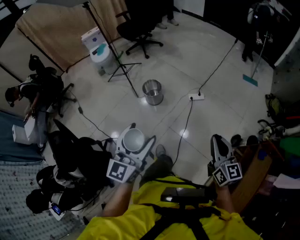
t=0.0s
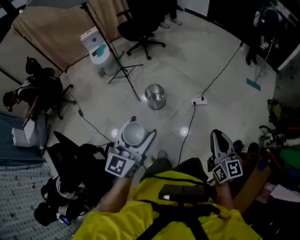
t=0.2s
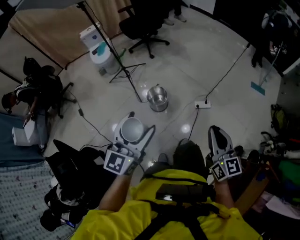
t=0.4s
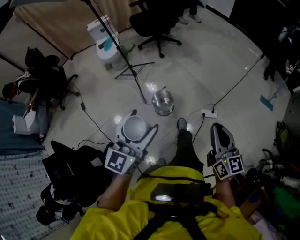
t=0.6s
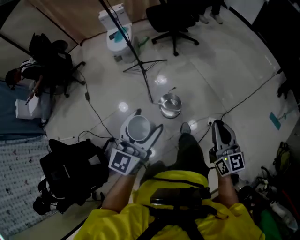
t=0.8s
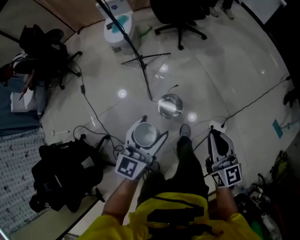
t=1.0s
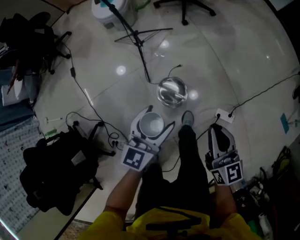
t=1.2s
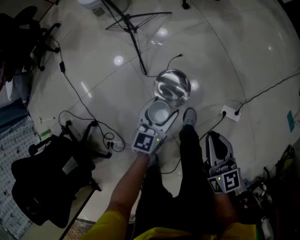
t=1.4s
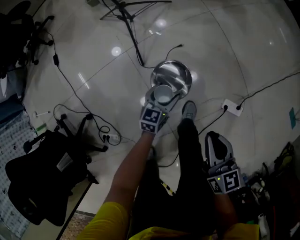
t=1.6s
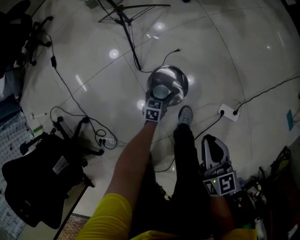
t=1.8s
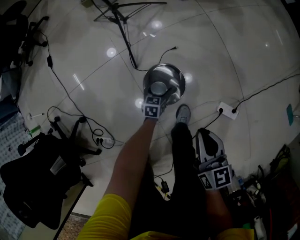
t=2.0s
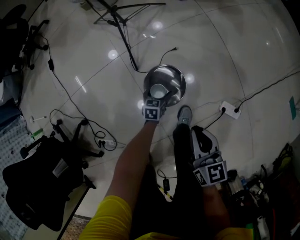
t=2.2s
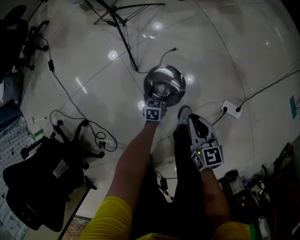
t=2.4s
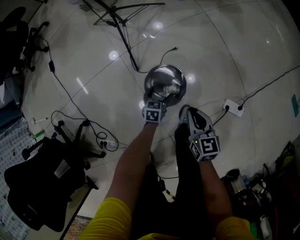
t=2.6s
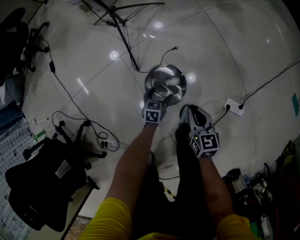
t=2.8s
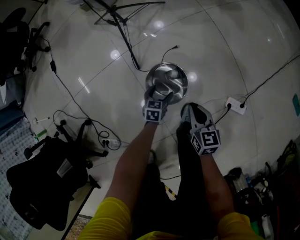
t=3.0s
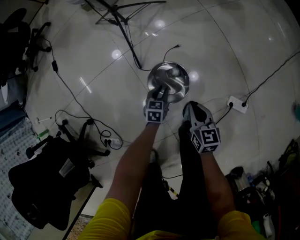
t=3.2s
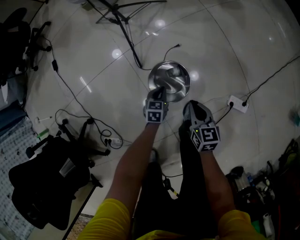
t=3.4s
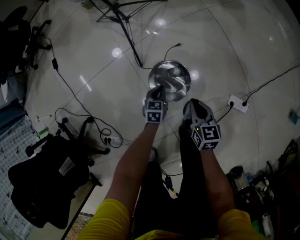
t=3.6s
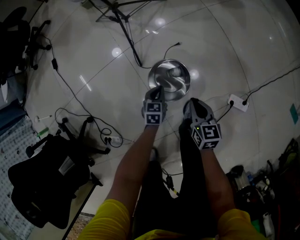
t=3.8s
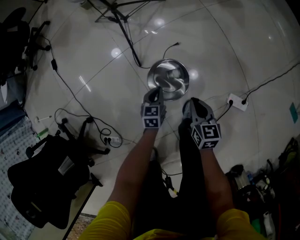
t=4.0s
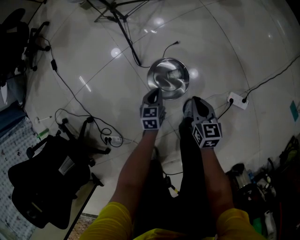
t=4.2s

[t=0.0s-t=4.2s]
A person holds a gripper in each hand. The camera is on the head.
t=0.0s to t=1.4s: The two grippers travel together, forward, about 70 cm. The two grippers go roughly 50 cm downward. The right gripper changes its angle by approximately 30 degrees. Meanwhile the left gripper rotates some 30 degrees.
t=1.4s to t=2.8s: The two grippers go approximately 25 cm downward. The left gripper swivels approximately 30 degrees.
t=2.8s to t=4.2s: The left gripper goes roughly 10 cm upward, and closes up.

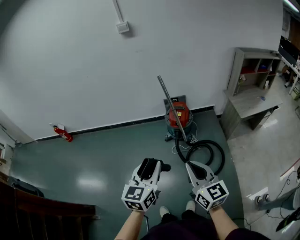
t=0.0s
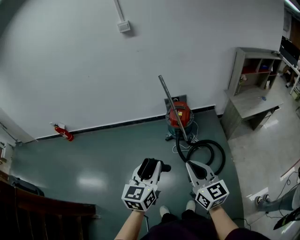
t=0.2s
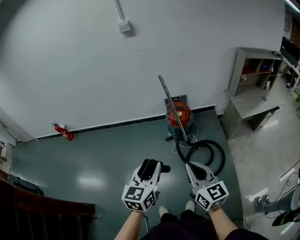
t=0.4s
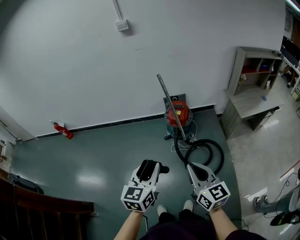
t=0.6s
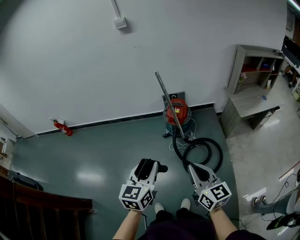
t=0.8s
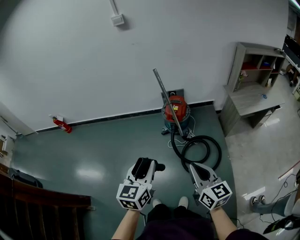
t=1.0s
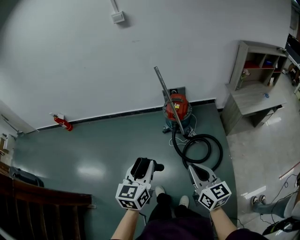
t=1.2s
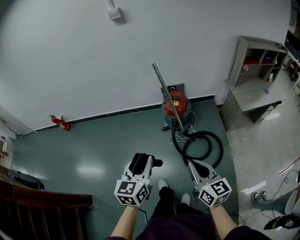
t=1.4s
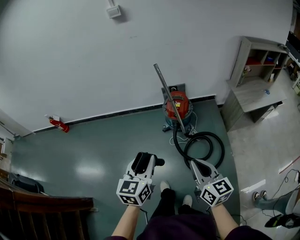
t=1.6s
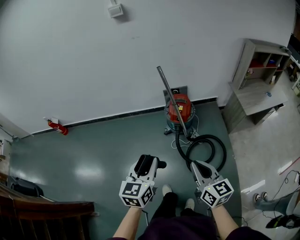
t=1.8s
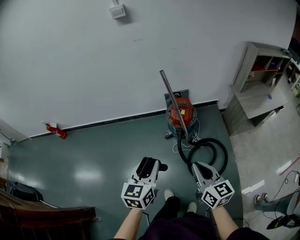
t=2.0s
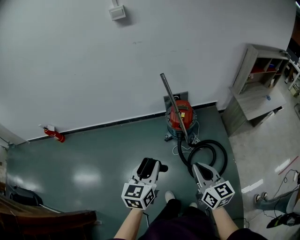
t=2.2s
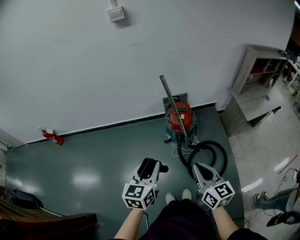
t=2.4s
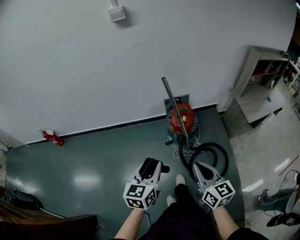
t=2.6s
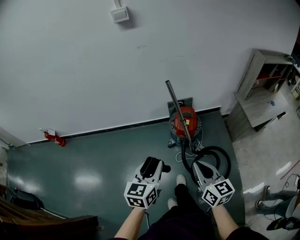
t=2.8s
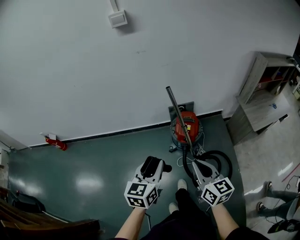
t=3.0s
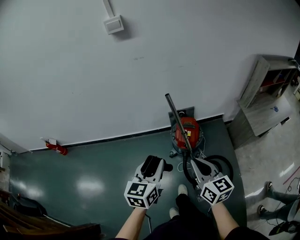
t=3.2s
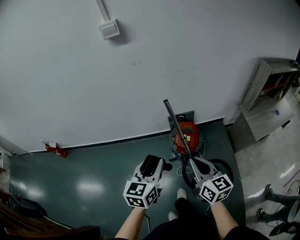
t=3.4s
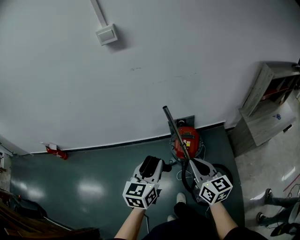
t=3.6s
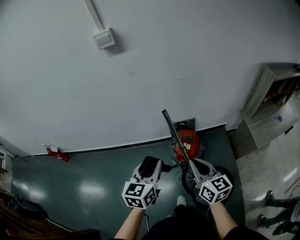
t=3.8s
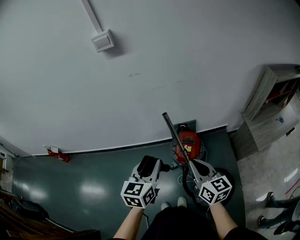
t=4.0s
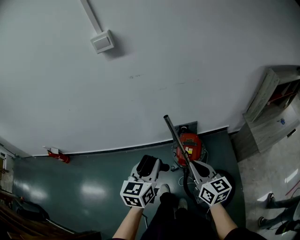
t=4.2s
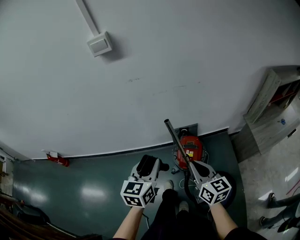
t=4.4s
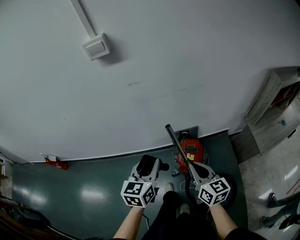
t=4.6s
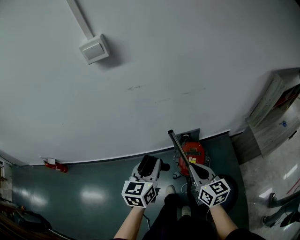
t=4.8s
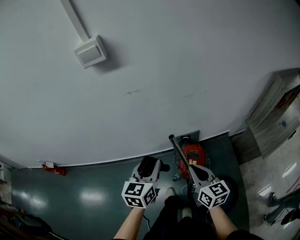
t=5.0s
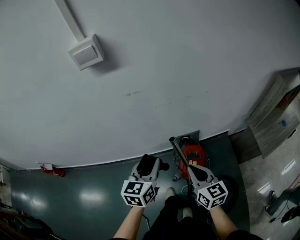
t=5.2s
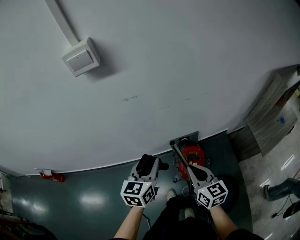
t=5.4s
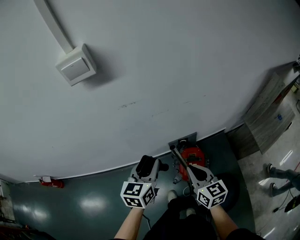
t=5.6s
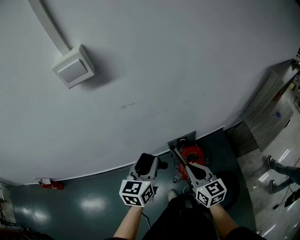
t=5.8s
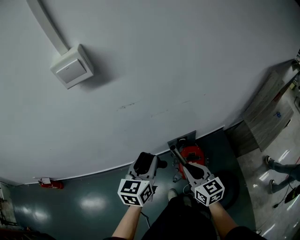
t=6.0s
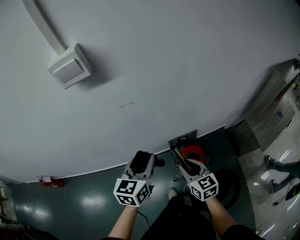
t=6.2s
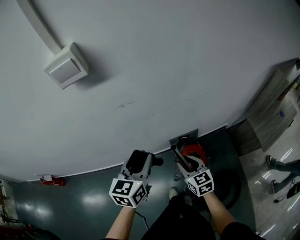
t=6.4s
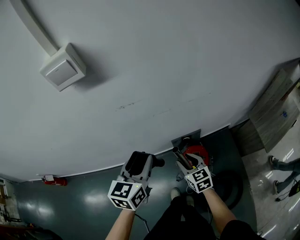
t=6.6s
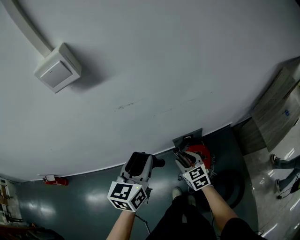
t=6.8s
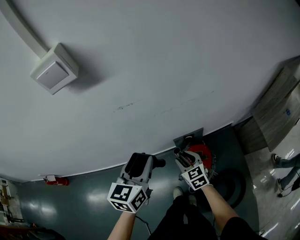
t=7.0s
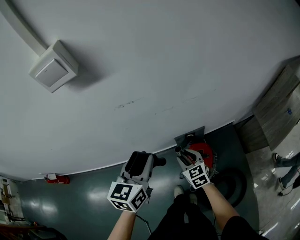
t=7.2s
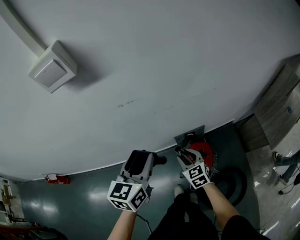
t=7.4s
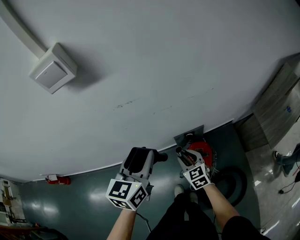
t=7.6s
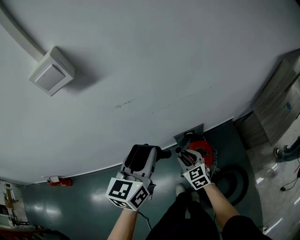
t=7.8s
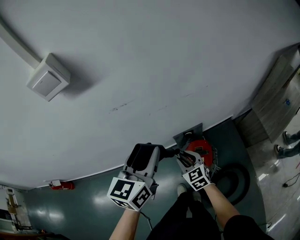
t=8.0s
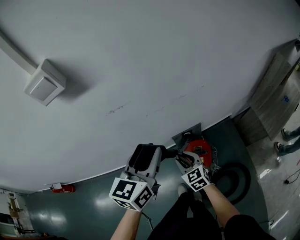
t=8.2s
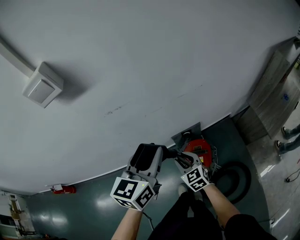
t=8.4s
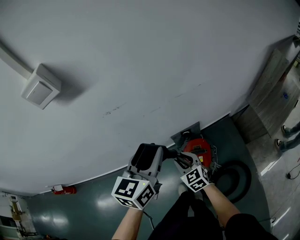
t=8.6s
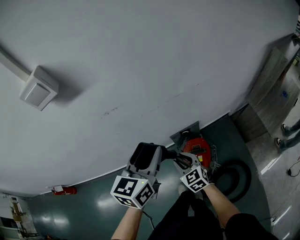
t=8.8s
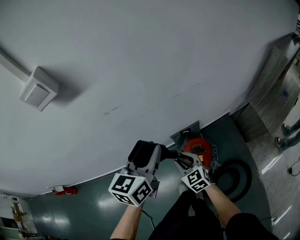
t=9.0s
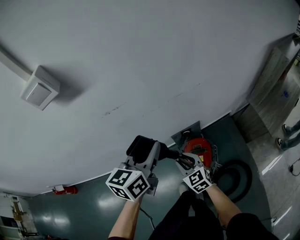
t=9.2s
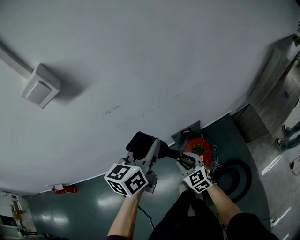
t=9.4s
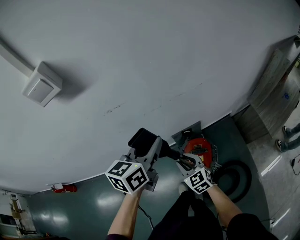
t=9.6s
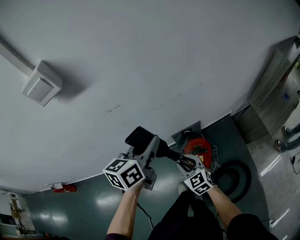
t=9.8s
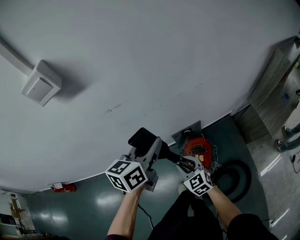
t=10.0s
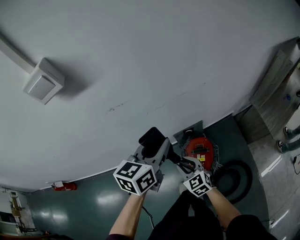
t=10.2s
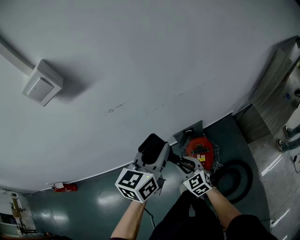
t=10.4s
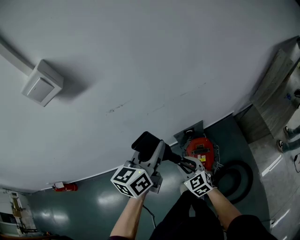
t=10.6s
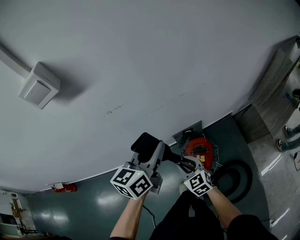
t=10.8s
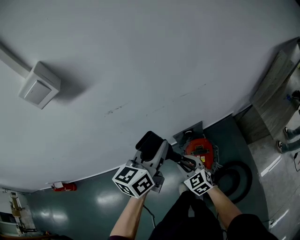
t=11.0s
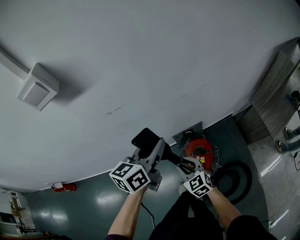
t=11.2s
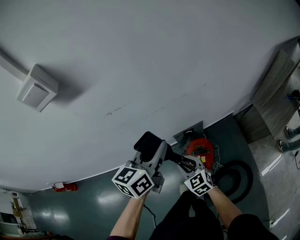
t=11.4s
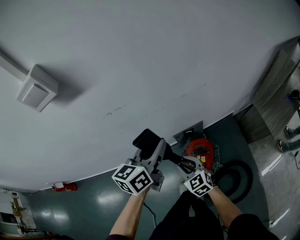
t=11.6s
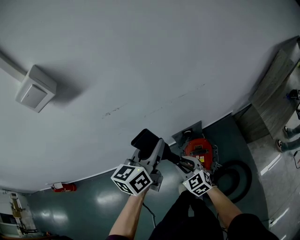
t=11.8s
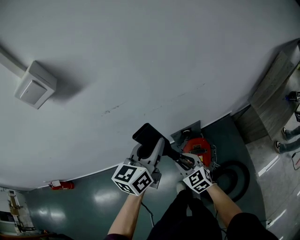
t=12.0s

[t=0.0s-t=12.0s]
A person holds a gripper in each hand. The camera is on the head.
t=0.0s to t=1.6s: The left gripper heads forward, covering about 10 cm, while the right gripper shifts some 10 cm downward, forward and to the right.
t=1.6s to t=3.0s: The two grippers go roughly 25 cm forward.
t=3.0s to t=4.4s: Both grippers travel together forward, some 20 cm.
t=4.4s to t=6.0s: The right gripper heads forward and to the left, covering roughly 20 cm; the left gripper shifts about 20 cm forward.
t=6.0s to t=7.6s: The right gripper shifts roughly 15 cm downward and forward, turns by roughly 20 degrees, and opens its fingers.
t=7.6s to t=9.0s: The left gripper moves to the right, some 5 cm.
t=9.0s to t=12.0s: The grippers make only small movements.

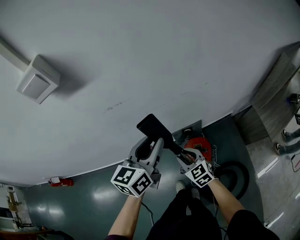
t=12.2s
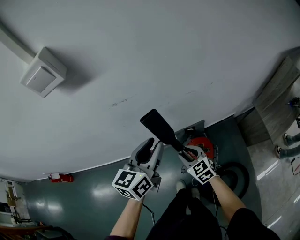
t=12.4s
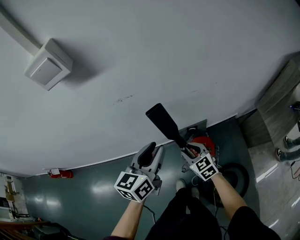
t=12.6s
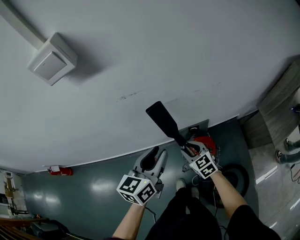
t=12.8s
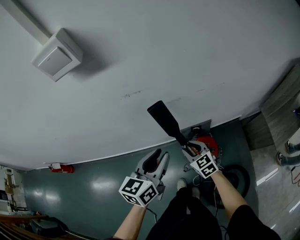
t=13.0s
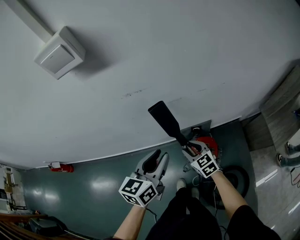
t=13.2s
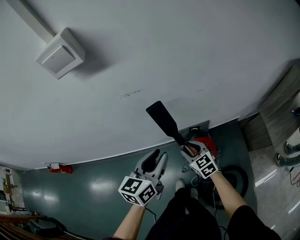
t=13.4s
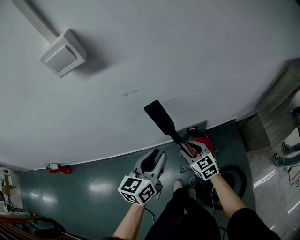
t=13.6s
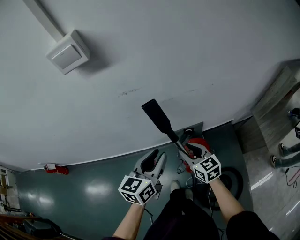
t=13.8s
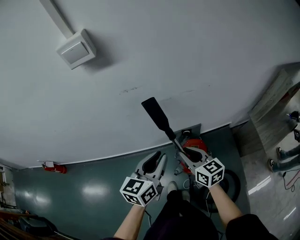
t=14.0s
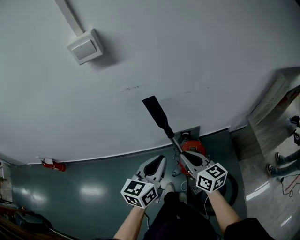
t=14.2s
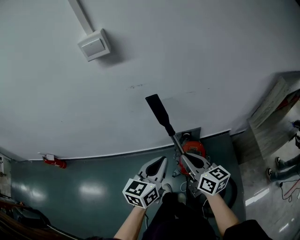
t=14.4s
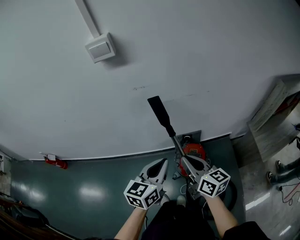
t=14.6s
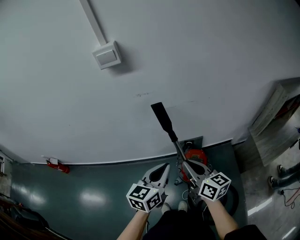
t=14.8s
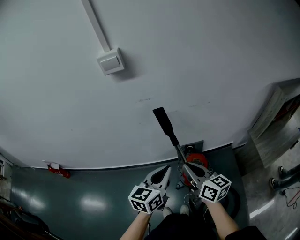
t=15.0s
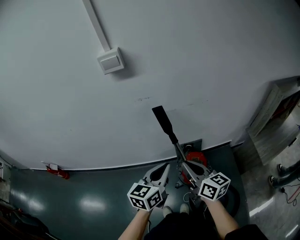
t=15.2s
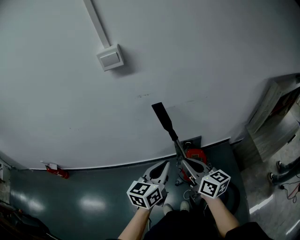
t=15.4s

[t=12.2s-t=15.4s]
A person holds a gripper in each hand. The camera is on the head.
t=12.2s to t=13.8s: The left gripper shifts roughly 10 cm backward. The right gripper shifts approximately 5 cm upward.
t=13.8s to t=15.4s: The right gripper moves upward and backward, about 20 cm, changes its angle by some 30 degrees, and closes its fingers; the left gripper heads backward, covering roughly 10 cm, and closes its fingers.

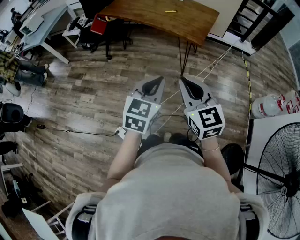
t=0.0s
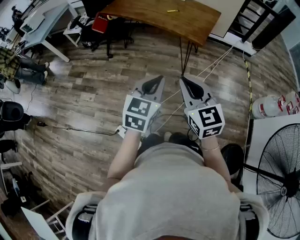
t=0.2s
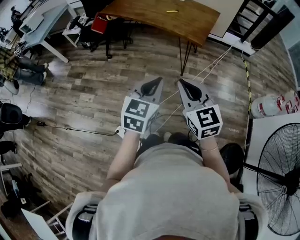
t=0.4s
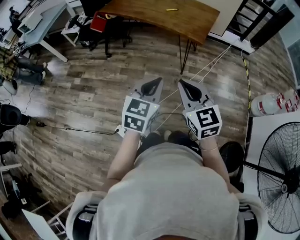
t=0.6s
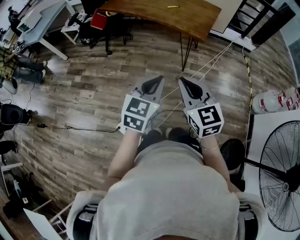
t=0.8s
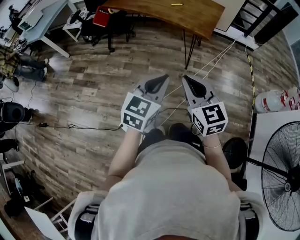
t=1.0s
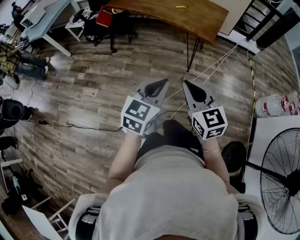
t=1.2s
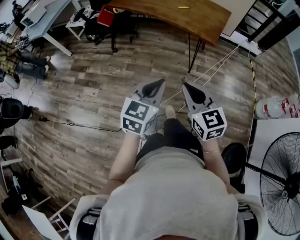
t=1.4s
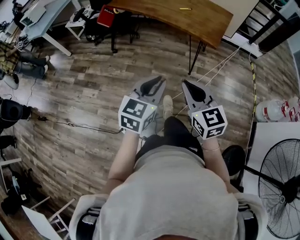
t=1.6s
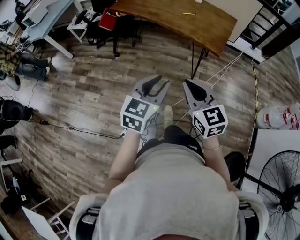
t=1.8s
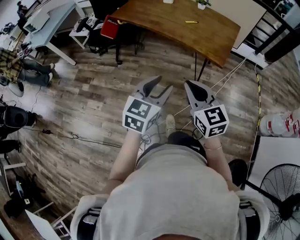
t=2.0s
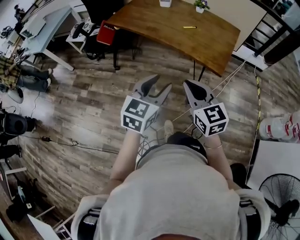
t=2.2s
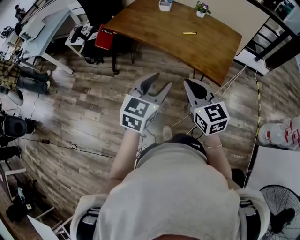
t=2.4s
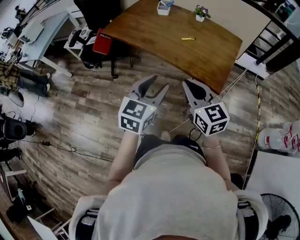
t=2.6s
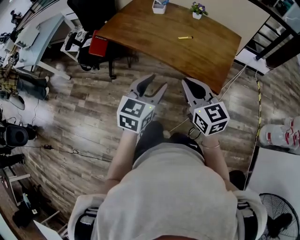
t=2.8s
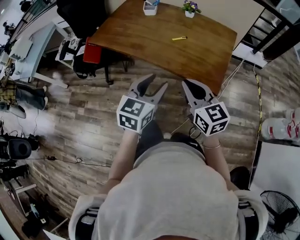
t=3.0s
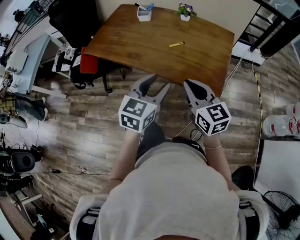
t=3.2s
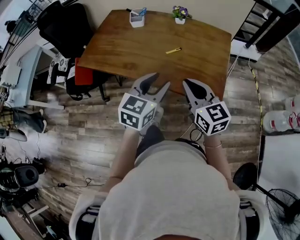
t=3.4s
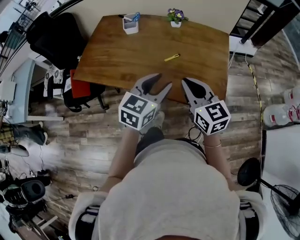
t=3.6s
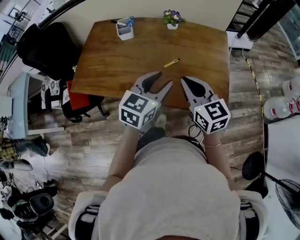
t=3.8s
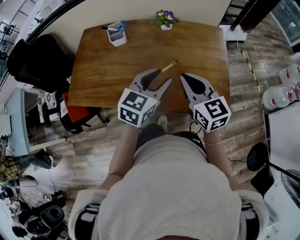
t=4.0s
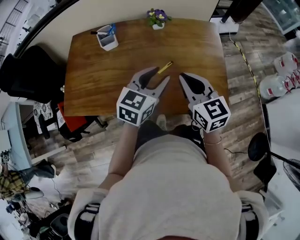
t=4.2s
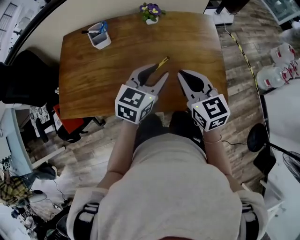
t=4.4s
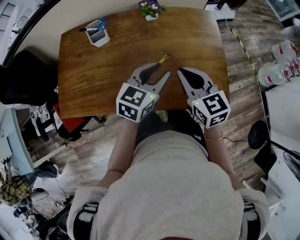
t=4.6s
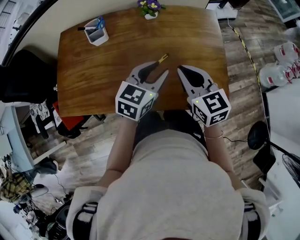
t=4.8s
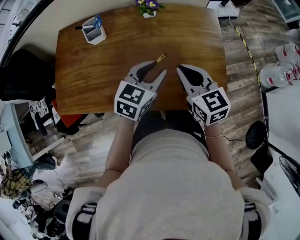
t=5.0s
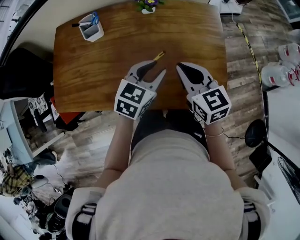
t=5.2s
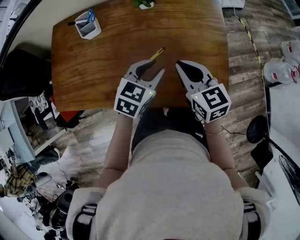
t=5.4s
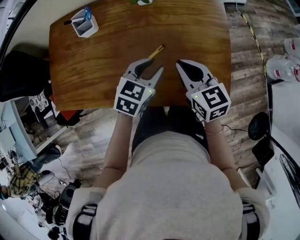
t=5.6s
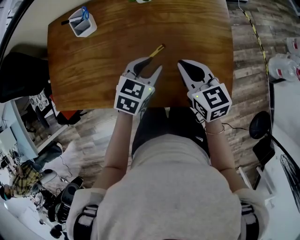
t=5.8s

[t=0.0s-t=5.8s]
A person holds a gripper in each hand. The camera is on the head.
t=0.0s to t=1.4s: The right gripper is displaced to the left and downward by about 10 cm. Meanwhile the left gripper shifts approximately 5 cm to the left.
t=1.4s to t=2.8s: The grippers both shift forward by approximately 35 cm. The left gripper opens up.
t=2.8s to t=4.4s: The left gripper moves approximately 35 cm, and turns by roughly 40 degrees, while the right gripper changes place by some 30 cm, and swivels some 30 degrees.
t=4.4s to t=5.8s: The left gripper shifts about 10 cm downward, and rotates roughly 20 degrees. Meanwhile the right gripper heads downward and forward, covering approximately 10 cm.
